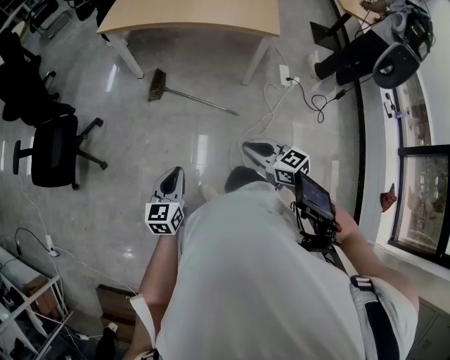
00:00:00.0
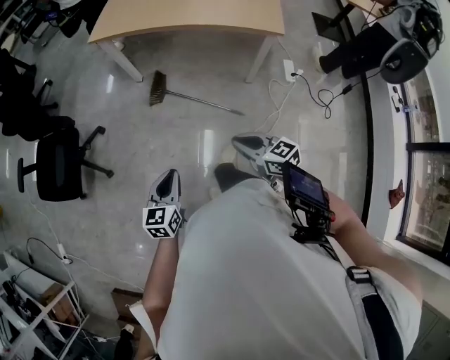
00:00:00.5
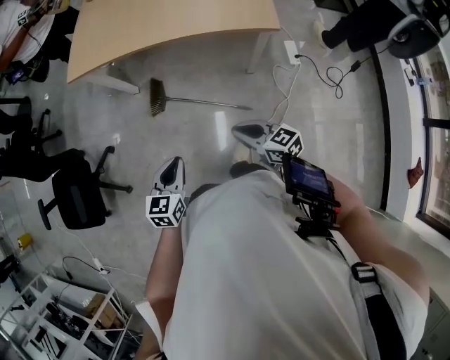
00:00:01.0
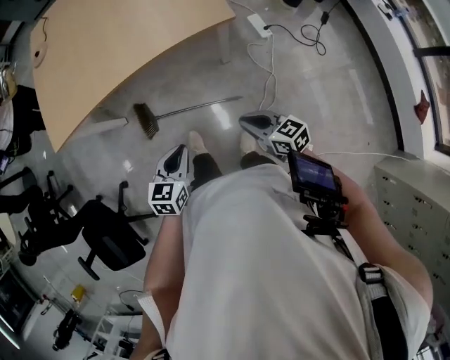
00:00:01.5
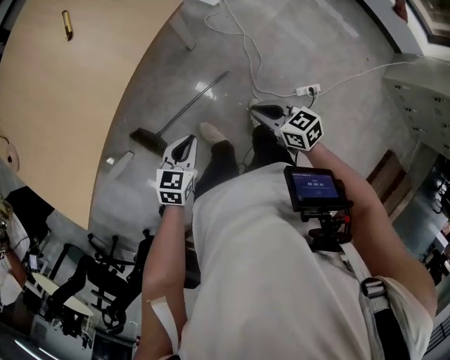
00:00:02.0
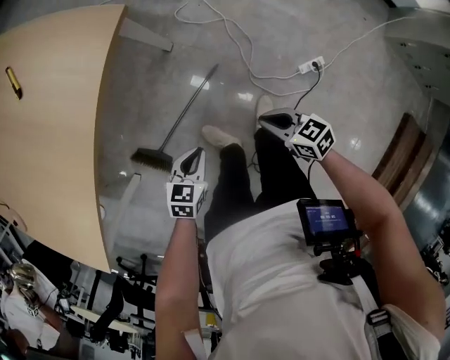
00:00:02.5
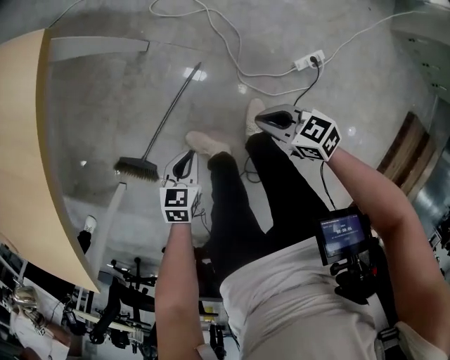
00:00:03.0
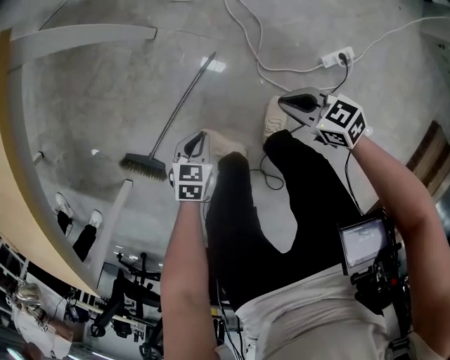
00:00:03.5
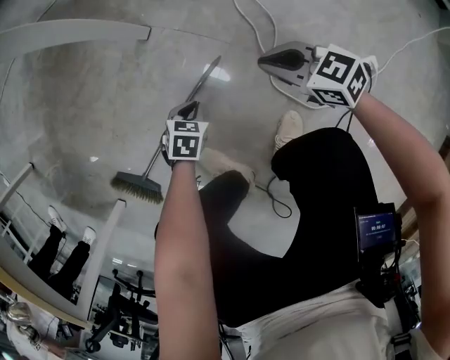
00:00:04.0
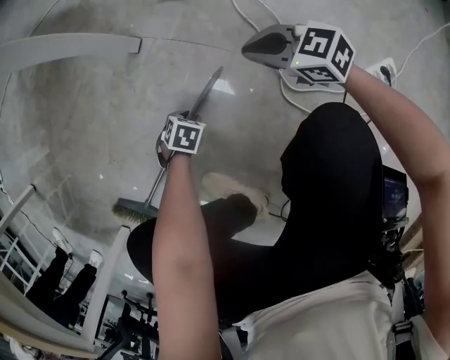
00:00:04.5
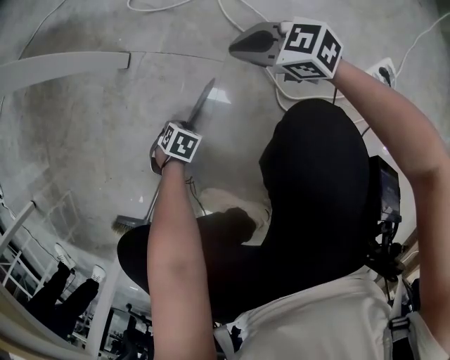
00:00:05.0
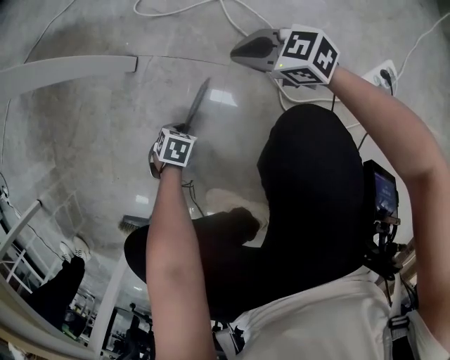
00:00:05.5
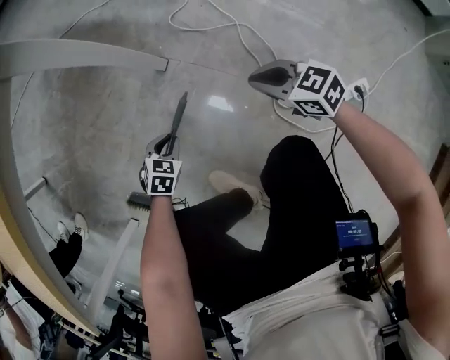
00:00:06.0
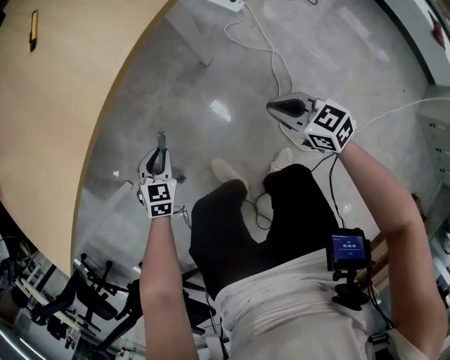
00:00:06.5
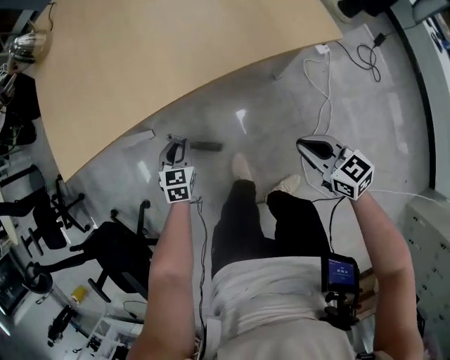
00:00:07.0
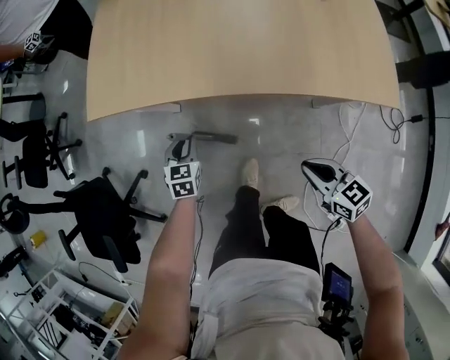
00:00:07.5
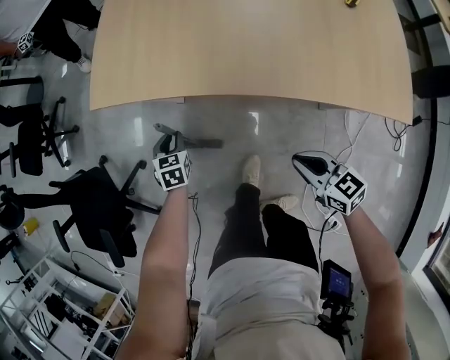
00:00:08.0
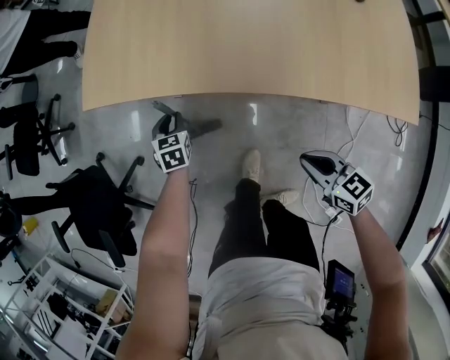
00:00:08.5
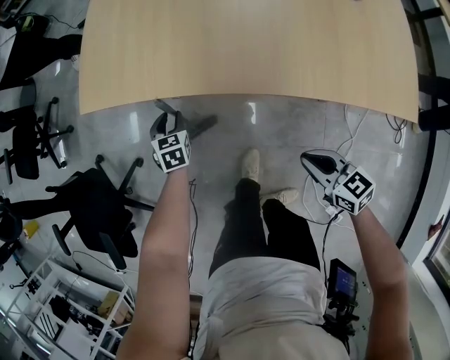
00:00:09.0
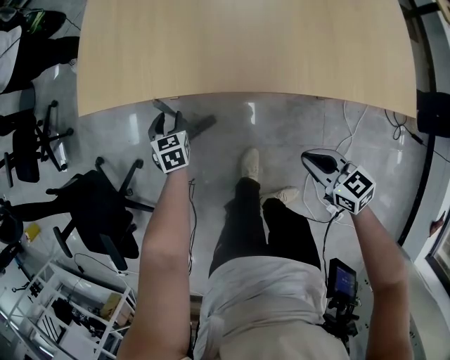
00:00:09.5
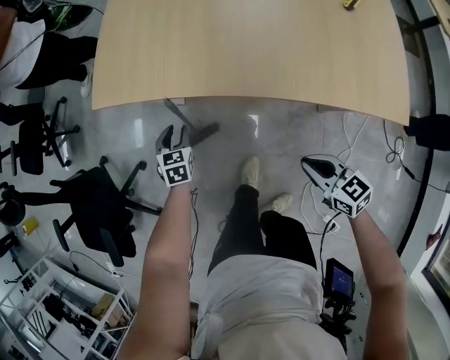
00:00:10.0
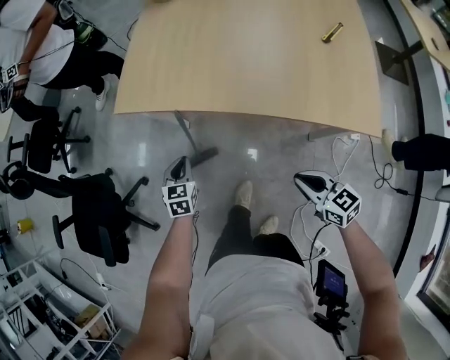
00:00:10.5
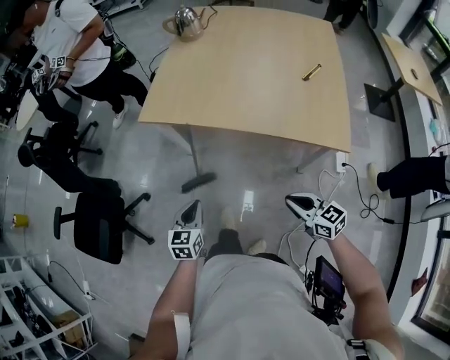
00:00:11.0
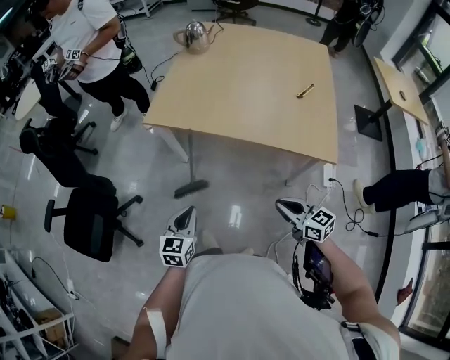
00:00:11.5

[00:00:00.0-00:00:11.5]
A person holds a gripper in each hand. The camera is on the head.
00:00:00.0 to 00:00:02.0: The right gripper shifts by approximately 25 cm, and turns by some 60 degrees. Meanwhile the left gripper changes place by some 40 cm, and rotates roughly 70 degrees.
00:00:02.0 to 00:00:04.0: Both grippers travel together downward, about 40 cm. The left gripper swivels roughly 30 degrees.
00:00:04.0 to 00:00:06.0: The left gripper reaches roughly 20 cm downward, then returns; the right gripper reaches roughly 15 cm downward, then returns.
00:00:06.0 to 00:00:07.5: The right gripper changes place by about 35 cm, and rotates roughly 40 degrees; the left gripper moves approximately 50 cm, and swivels roughly 90 degrees.
00:00:07.5 to 00:00:09.5: The left gripper travels forward by approximately 10 cm, and opens its fingers.
00:00:09.5 to 00:00:11.5: The left gripper travels upward, backward and to the left by roughly 40 cm, swivels some 30 degrees, and closes its fingers; the right gripper travels upward and to the left by approximately 20 cm.

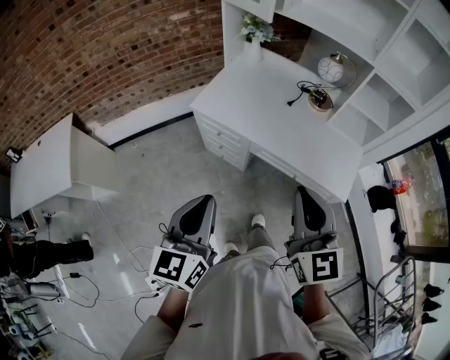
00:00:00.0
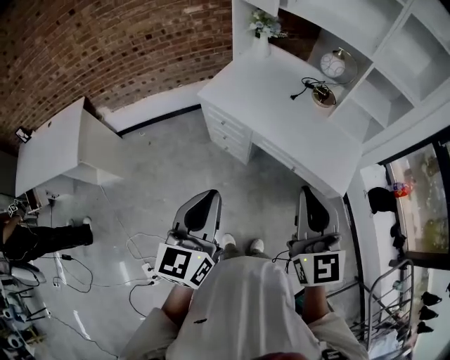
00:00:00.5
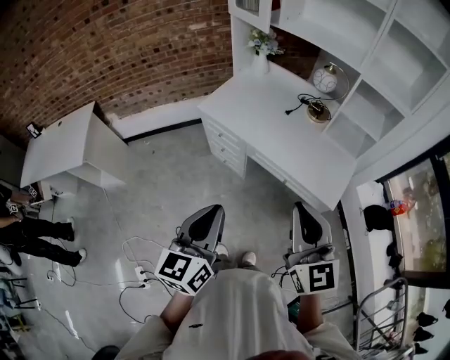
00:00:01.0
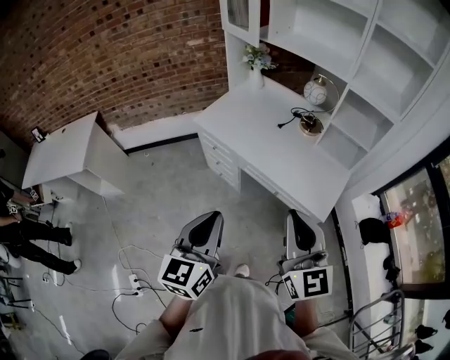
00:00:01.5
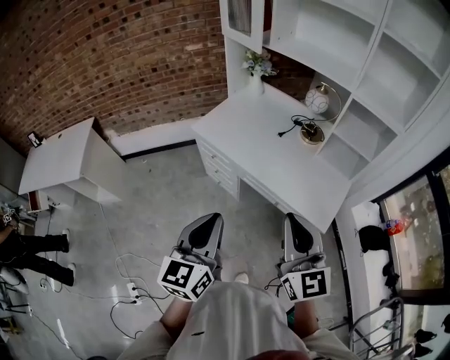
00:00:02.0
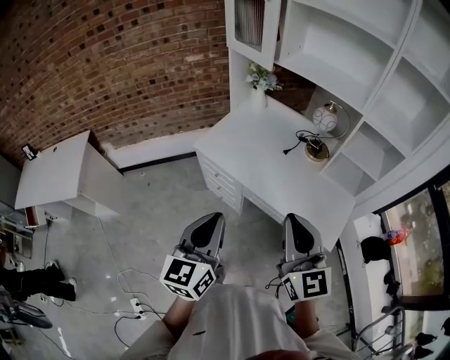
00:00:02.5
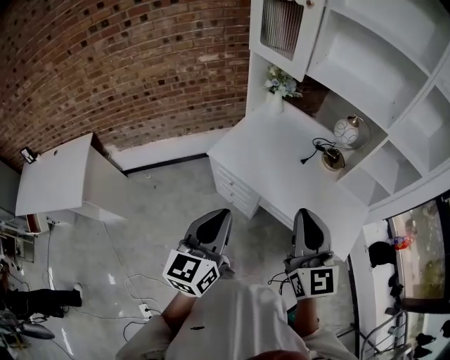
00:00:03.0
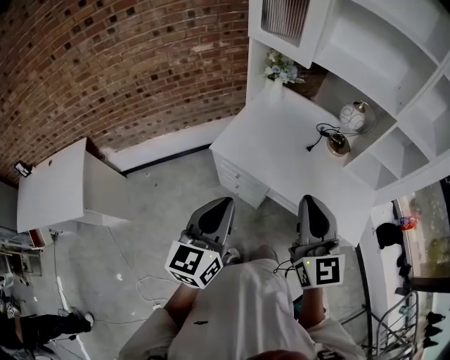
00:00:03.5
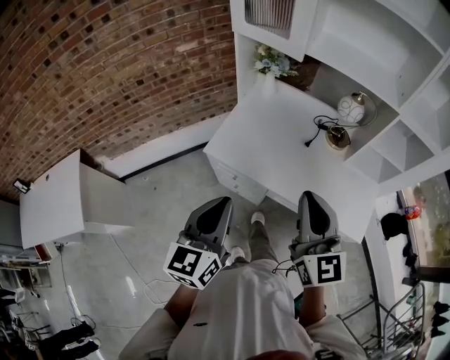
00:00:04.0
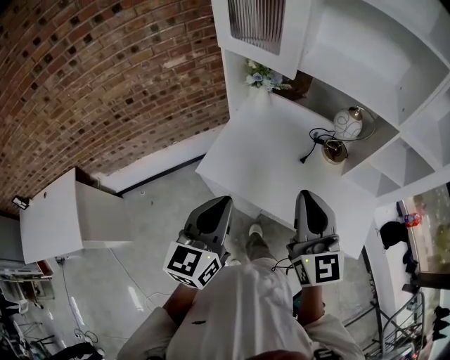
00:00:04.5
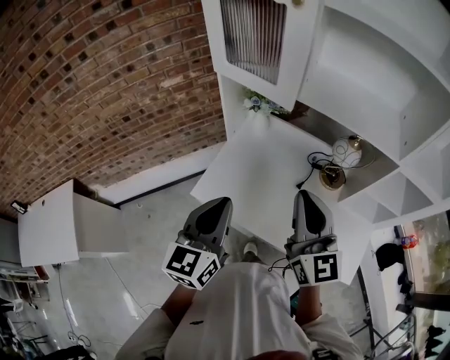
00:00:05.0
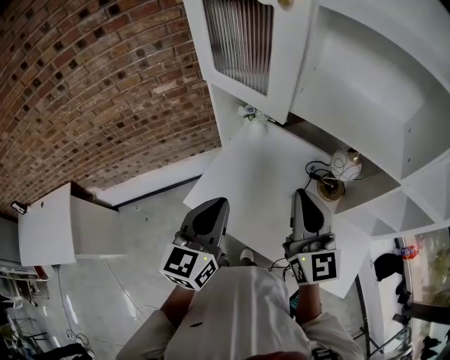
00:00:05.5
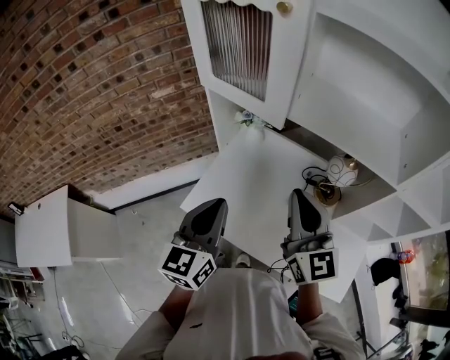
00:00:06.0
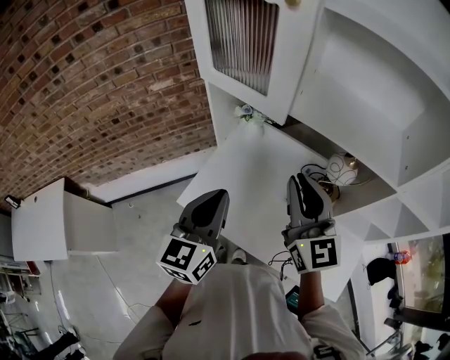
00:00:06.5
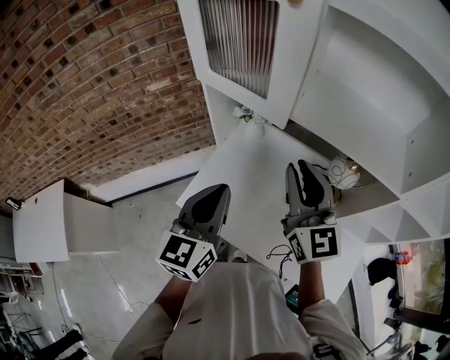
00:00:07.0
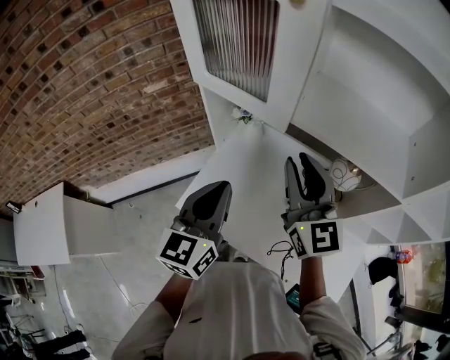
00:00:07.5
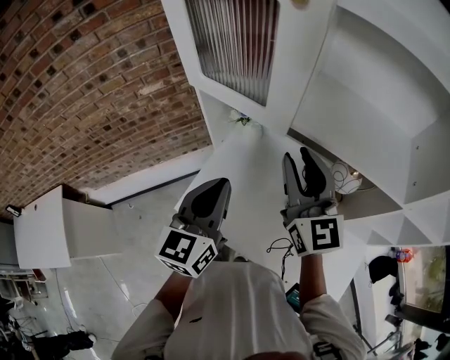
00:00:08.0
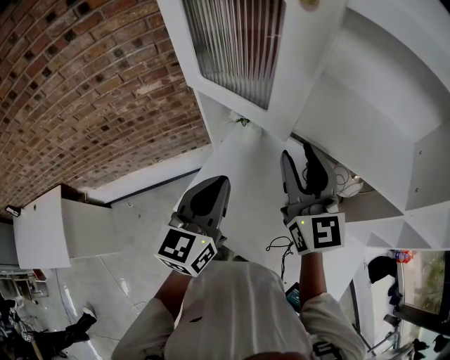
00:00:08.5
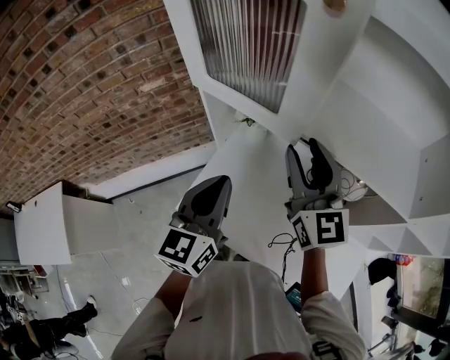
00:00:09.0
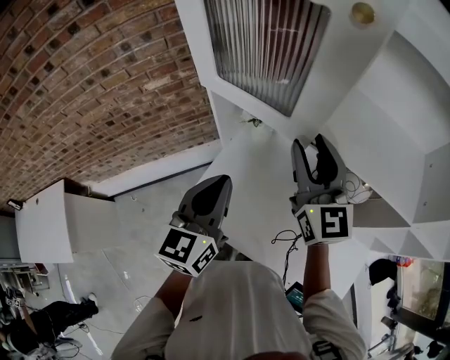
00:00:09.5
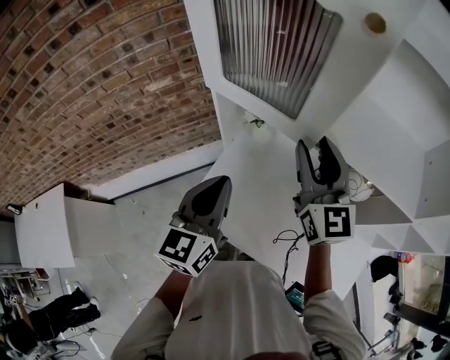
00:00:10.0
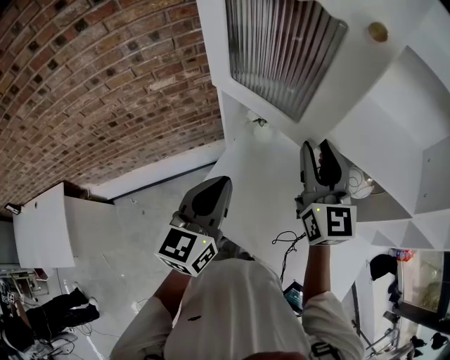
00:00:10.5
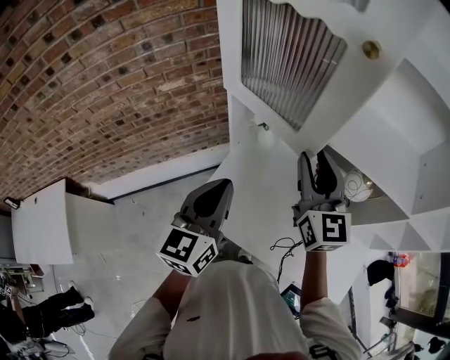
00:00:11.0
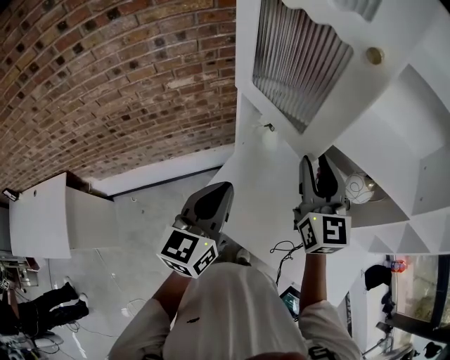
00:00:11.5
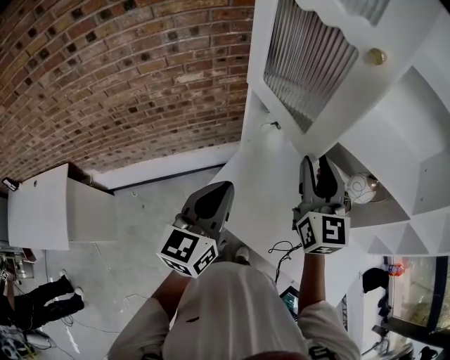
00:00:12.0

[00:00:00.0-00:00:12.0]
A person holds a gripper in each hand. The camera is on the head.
00:00:00.0 to 00:00:02.0: The grippers both shift to the right and backward by about 15 cm.
00:00:02.0 to 00:00:04.0: Both grippers move forward and to the left, about 30 cm.
00:00:04.0 to 00:00:06.0: Both grippers travel together forward, roughly 25 cm.
00:00:06.0 to 00:00:08.0: Both grippers move forward, approximately 10 cm. The right gripper opens up.
00:00:08.0 to 00:00:10.0: The left gripper moves to the left, about 5 cm. The right gripper heads forward, covering roughly 5 cm.
00:00:10.0 to 00:00:12.0: Both grippers move backward and to the left, roughly 10 cm.

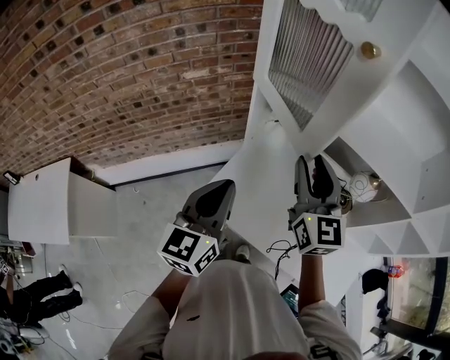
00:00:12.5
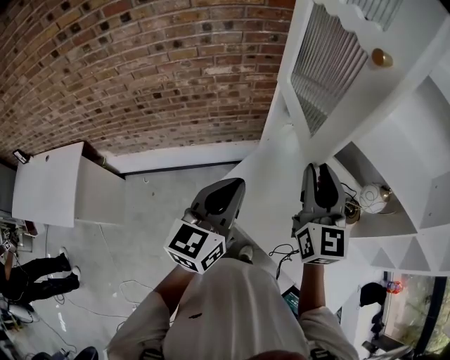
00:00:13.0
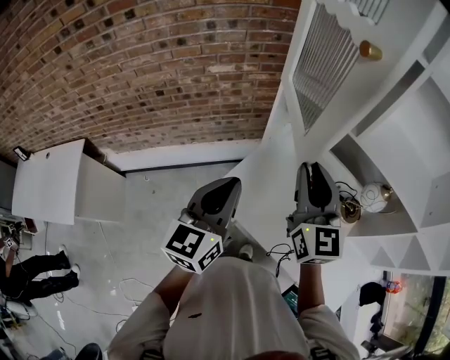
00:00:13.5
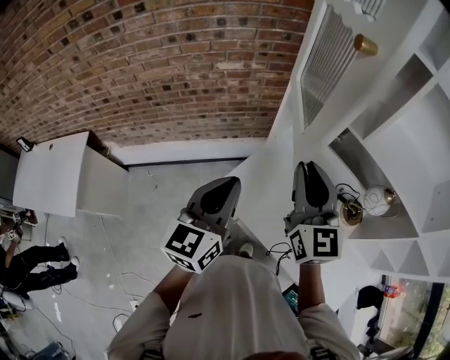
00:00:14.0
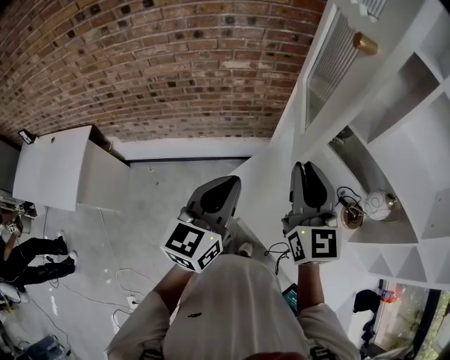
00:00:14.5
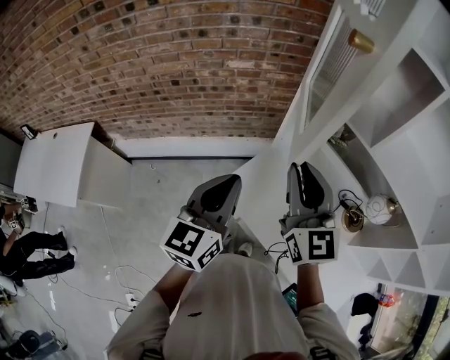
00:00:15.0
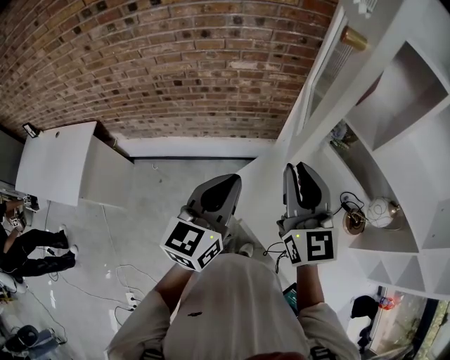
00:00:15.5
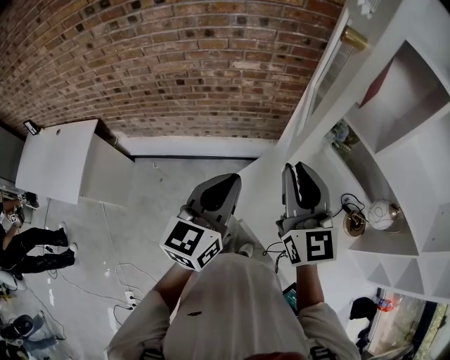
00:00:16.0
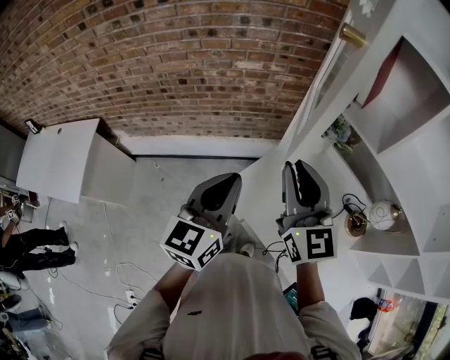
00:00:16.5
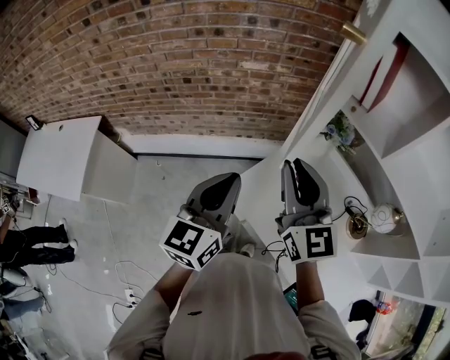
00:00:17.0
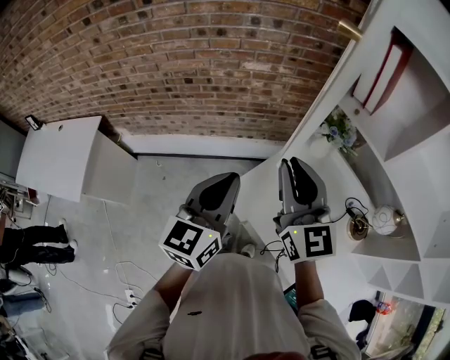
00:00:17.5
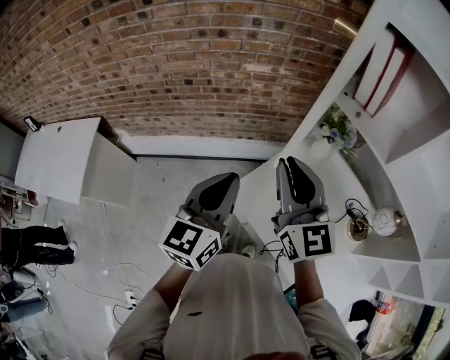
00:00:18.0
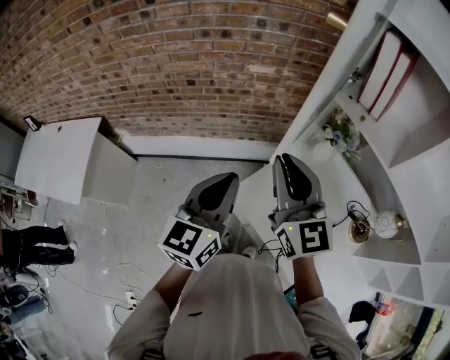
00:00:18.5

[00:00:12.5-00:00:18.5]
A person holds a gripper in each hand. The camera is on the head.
00:00:12.5 to 00:00:14.5: The left gripper is displaced to the left by some 5 cm, while the right gripper moves to the left, approximately 10 cm.
00:00:14.5 to 00:00:16.5: The grippers stay close to where they were, moving slightly.
00:00:16.5 to 00:00:18.5: The grippers both shift to the left by about 5 cm.
